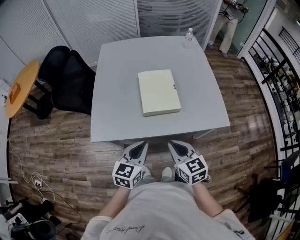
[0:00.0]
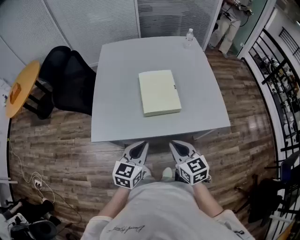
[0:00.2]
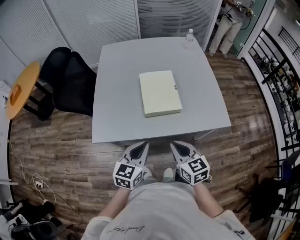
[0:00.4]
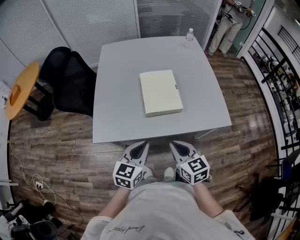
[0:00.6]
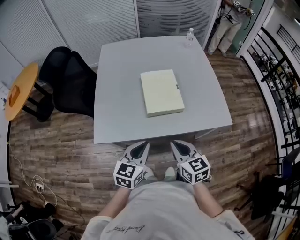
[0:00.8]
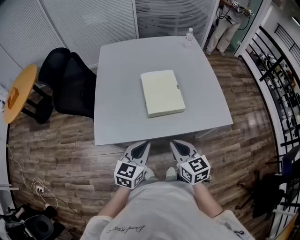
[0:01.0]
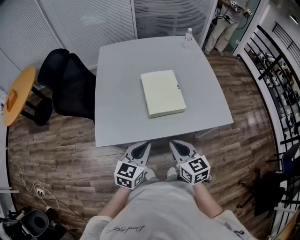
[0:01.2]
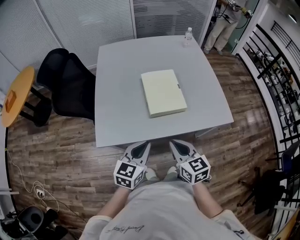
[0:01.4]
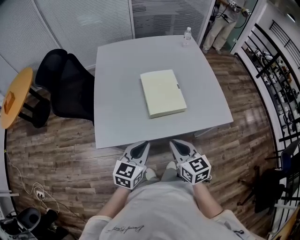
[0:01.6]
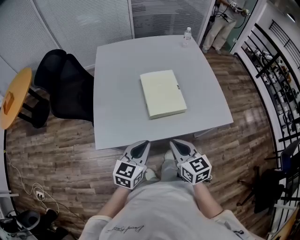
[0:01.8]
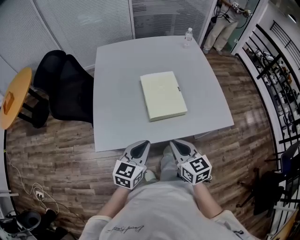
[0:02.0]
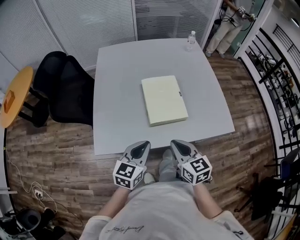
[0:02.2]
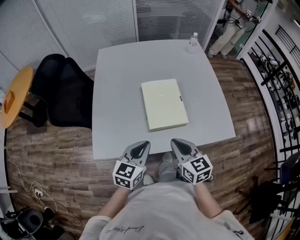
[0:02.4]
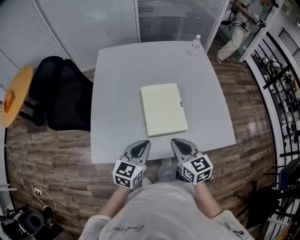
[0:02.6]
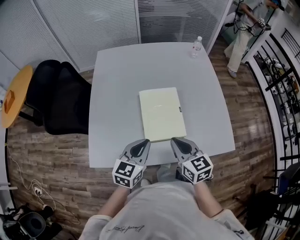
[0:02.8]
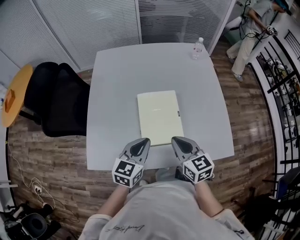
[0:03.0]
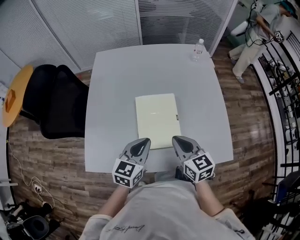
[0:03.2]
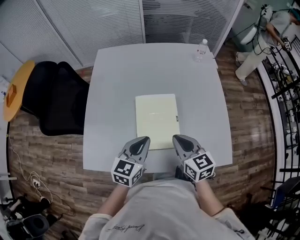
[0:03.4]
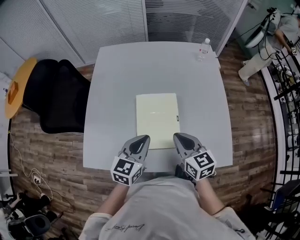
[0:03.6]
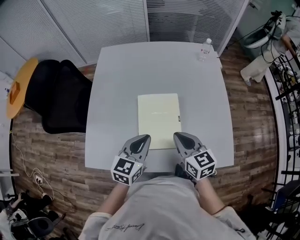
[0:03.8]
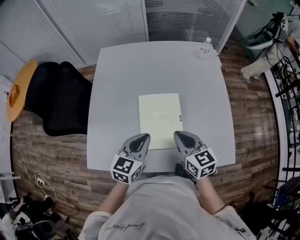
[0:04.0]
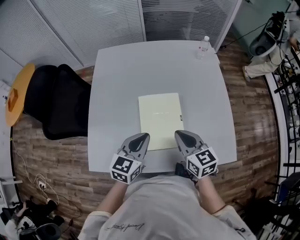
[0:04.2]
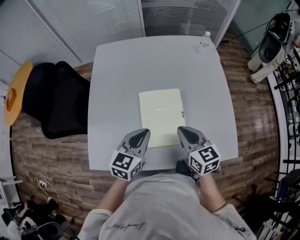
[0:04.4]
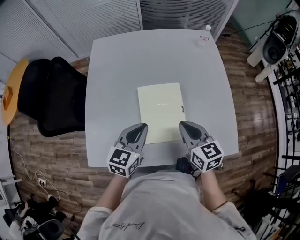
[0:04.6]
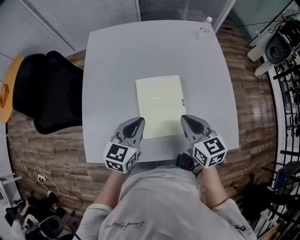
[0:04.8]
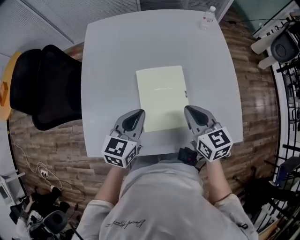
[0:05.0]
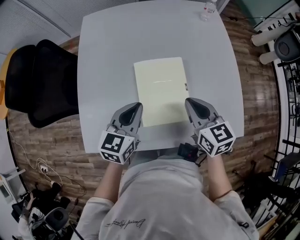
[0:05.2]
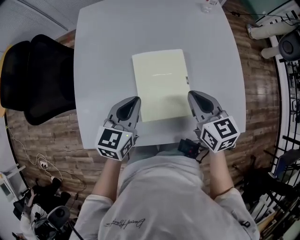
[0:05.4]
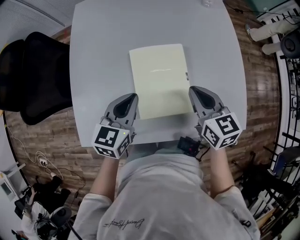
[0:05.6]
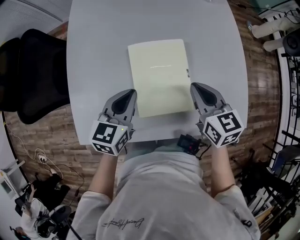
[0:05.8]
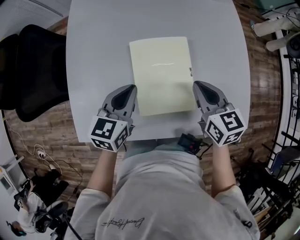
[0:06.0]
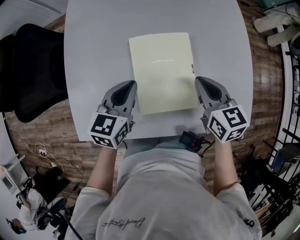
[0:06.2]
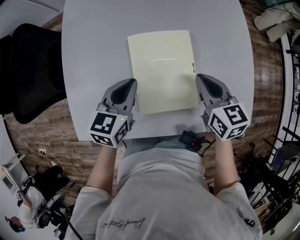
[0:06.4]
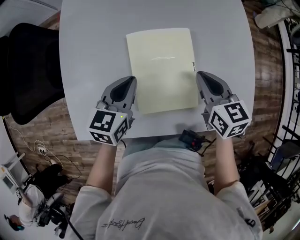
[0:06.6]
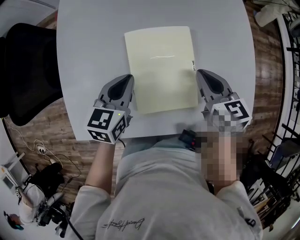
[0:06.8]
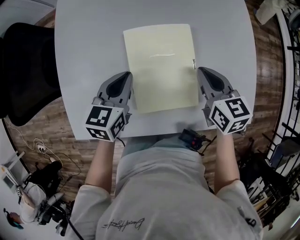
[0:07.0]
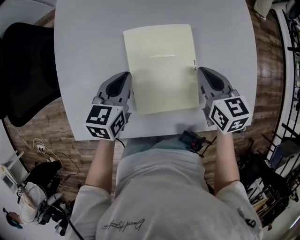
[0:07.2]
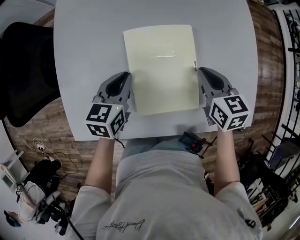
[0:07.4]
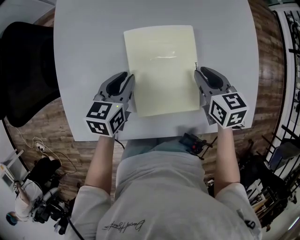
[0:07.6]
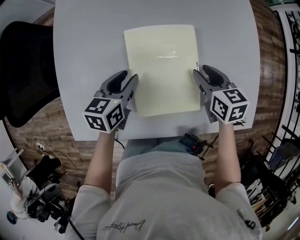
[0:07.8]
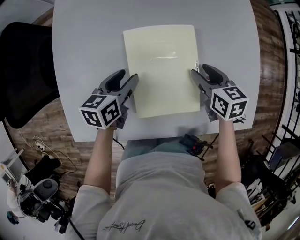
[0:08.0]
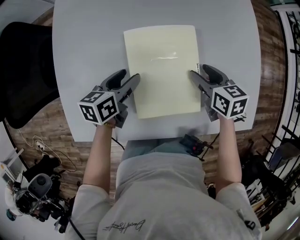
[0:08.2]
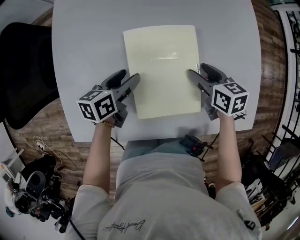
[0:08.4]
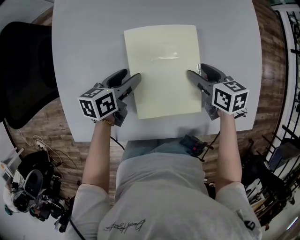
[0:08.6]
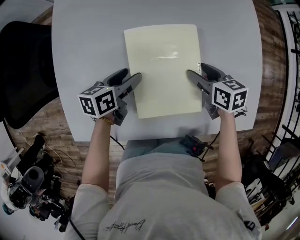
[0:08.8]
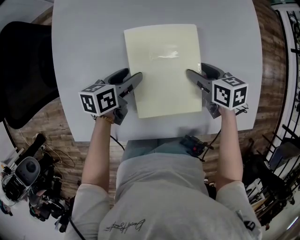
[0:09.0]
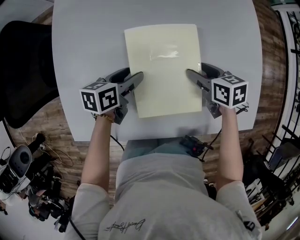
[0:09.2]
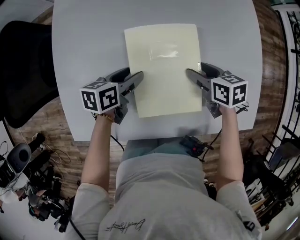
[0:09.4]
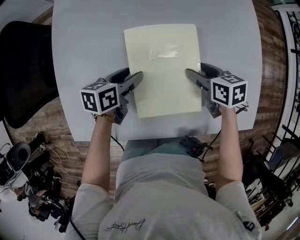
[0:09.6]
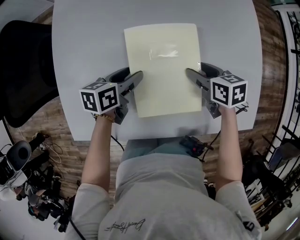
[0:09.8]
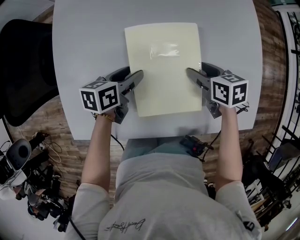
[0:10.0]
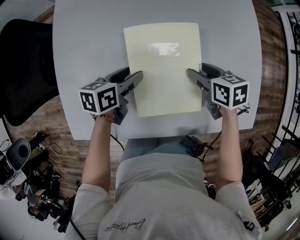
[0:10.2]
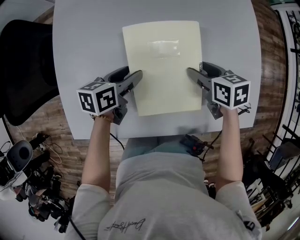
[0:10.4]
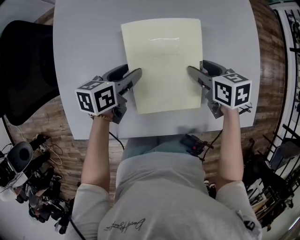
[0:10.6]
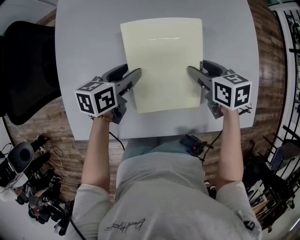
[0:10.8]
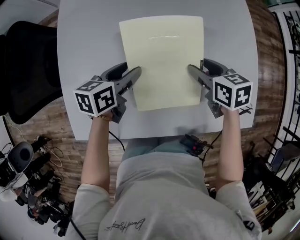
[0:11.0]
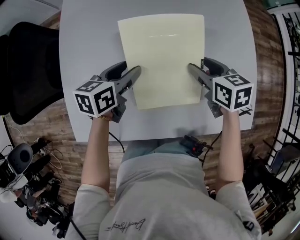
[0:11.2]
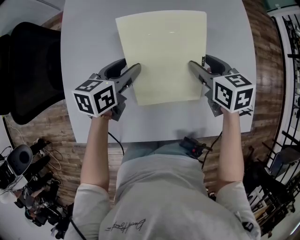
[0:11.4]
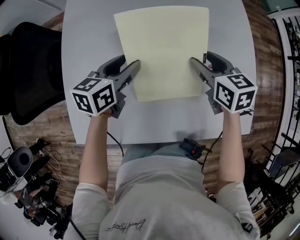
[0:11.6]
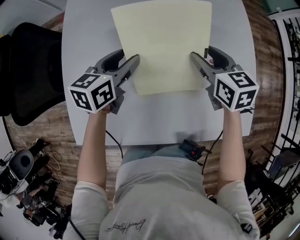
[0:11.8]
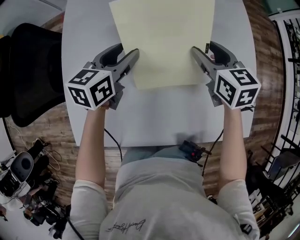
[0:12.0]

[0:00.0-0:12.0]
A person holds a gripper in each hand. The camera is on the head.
0:00.0 to 0:01.6: The grippers stay close to where they were, moving slightly.
0:01.6 to 0:03.0: Both grippers travel together forward, roughly 20 cm.
0:03.0 to 0:04.4: The right gripper heads forward, covering some 5 cm. Meanwhile the left gripper changes place by about 5 cm.
0:04.4 to 0:06.0: The left gripper travels downward by roughly 5 cm. Meanwhile the right gripper moves approximately 5 cm.
0:06.0 to 0:07.6: Both grippers travel together downward, some 10 cm.
0:07.6 to 0:09.0: Both grippers move downward, approximately 5 cm. The right gripper opens; the left gripper rotates about 20 degrees, and opens up.
0:09.0 to 0:10.4: There are only small adjustments of the grippers.
0:10.4 to 0:12.0: The two grippers go approximately 15 cm upward and forward. The left gripper changes its angle by about 30 degrees, while the right gripper swivels approximately 30 degrees.

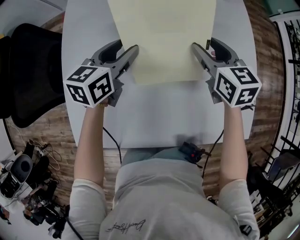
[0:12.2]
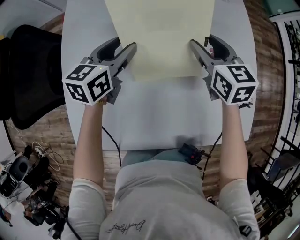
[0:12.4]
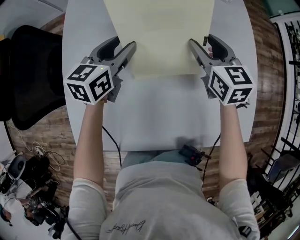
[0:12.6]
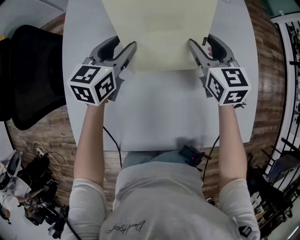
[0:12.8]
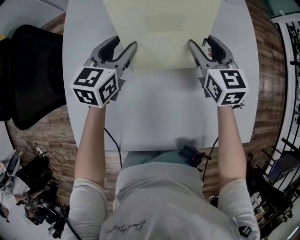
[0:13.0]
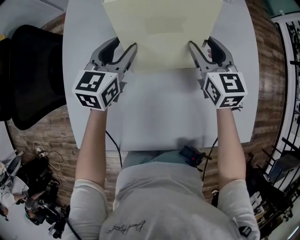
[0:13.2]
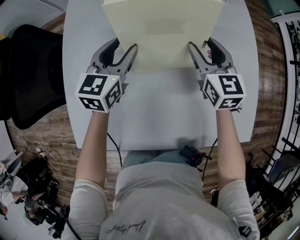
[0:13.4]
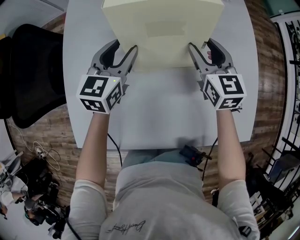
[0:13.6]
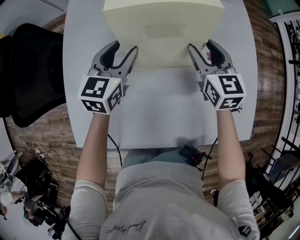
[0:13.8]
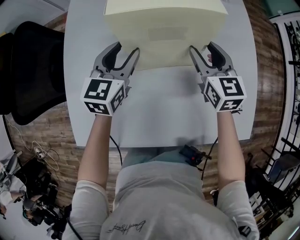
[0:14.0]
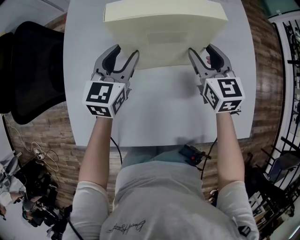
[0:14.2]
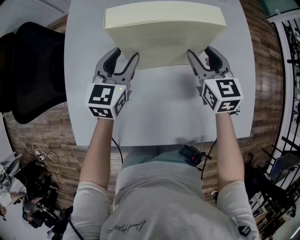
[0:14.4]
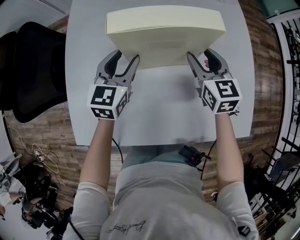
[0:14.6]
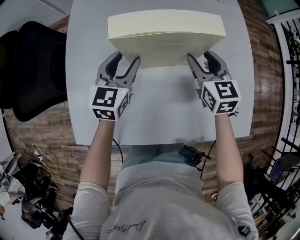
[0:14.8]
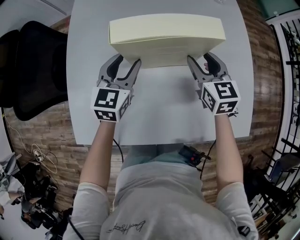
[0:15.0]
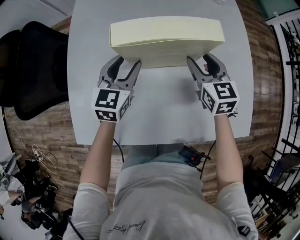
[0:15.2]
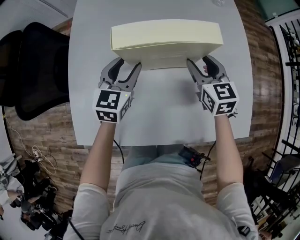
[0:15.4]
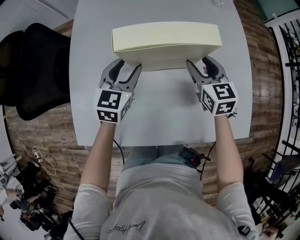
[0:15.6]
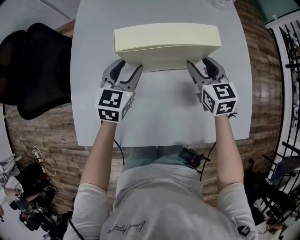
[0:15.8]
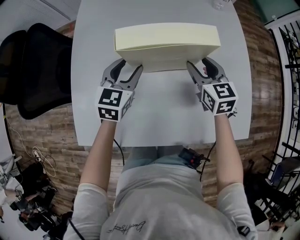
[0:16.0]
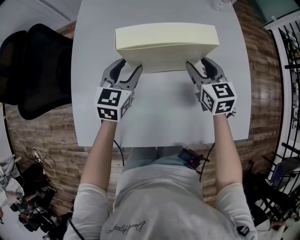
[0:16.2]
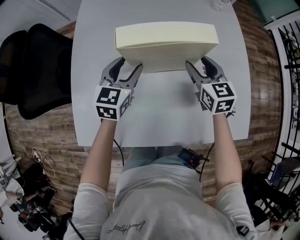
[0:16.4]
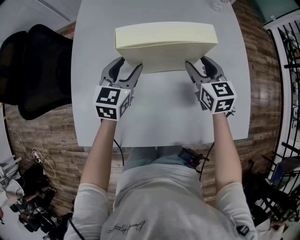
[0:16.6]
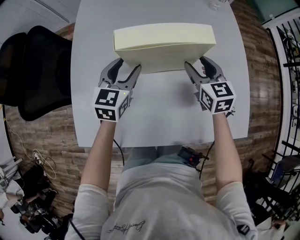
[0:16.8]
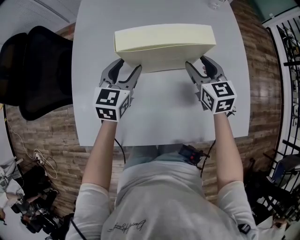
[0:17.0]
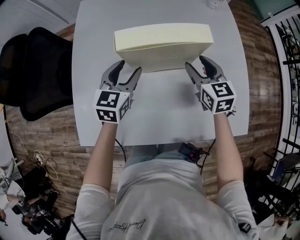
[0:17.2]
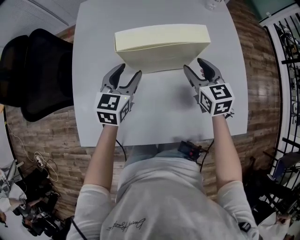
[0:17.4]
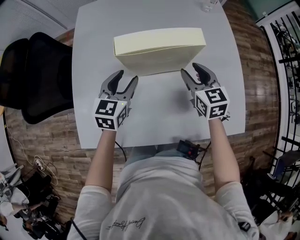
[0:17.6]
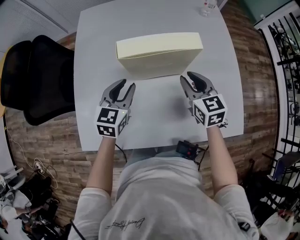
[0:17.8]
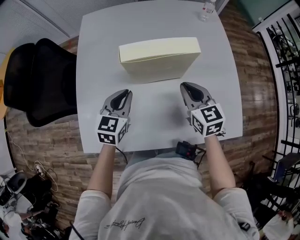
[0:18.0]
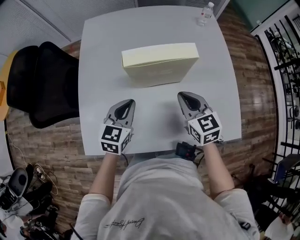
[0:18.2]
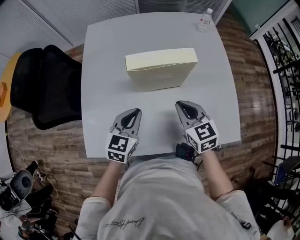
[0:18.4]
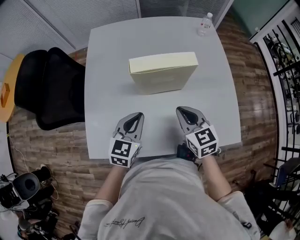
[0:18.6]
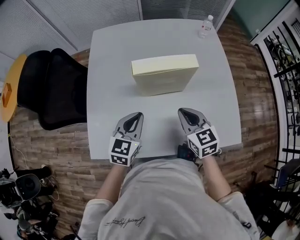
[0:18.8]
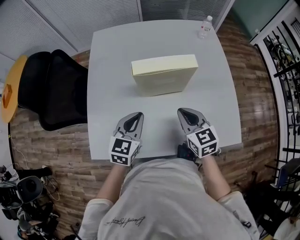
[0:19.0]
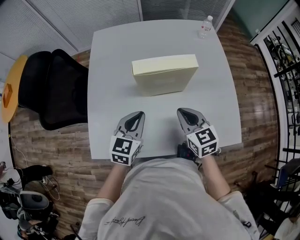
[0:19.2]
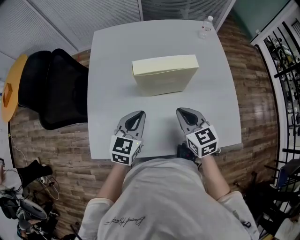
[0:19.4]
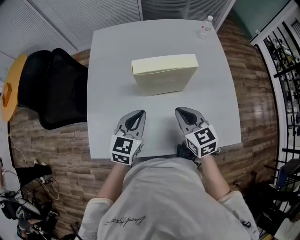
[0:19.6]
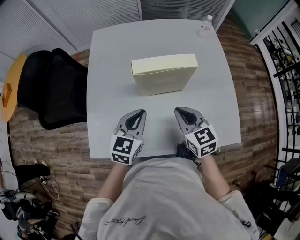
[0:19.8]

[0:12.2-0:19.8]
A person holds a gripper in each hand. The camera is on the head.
0:12.2 to 0:13.8: The grippers stay close to where they were, moving slightly.
0:13.8 to 0:15.2: The left gripper changes place by about 5 cm.
0:15.2 to 0:16.8: The two grippers keep their place.
0:16.8 to 0:18.2: The two grippers go about 10 cm backward. The right gripper closes up. The left gripper closes up.
0:18.2 to 0:19.8: The left gripper shifts by about 5 cm; the right gripper shifts by approximately 5 cm.

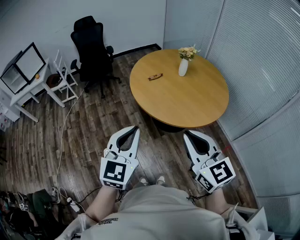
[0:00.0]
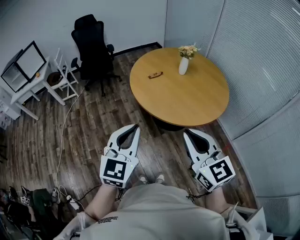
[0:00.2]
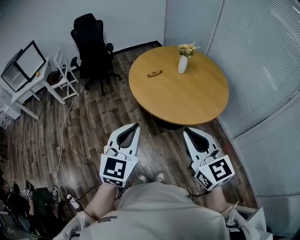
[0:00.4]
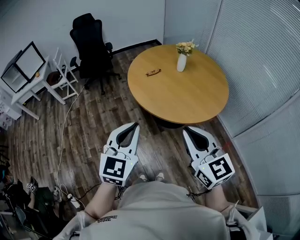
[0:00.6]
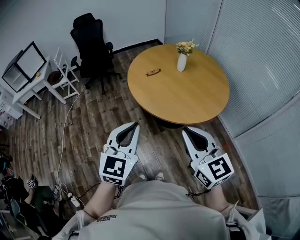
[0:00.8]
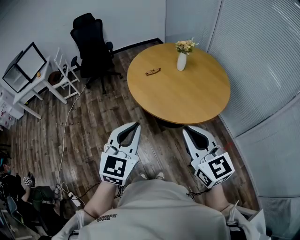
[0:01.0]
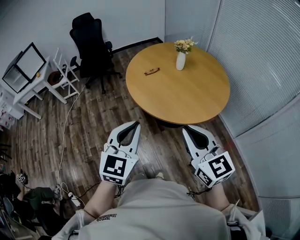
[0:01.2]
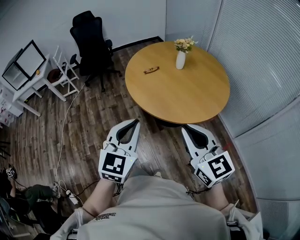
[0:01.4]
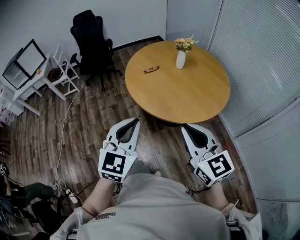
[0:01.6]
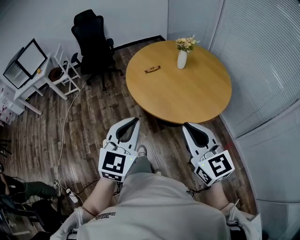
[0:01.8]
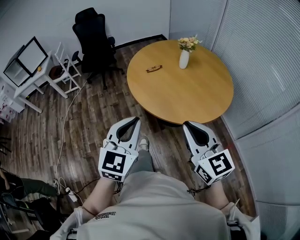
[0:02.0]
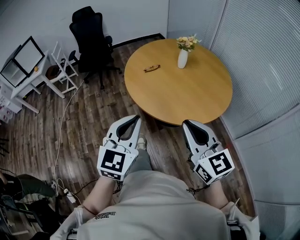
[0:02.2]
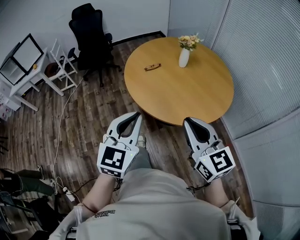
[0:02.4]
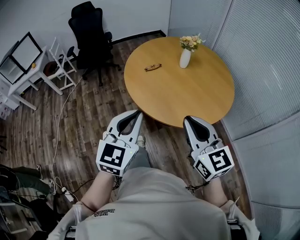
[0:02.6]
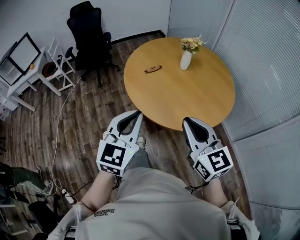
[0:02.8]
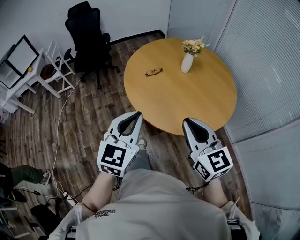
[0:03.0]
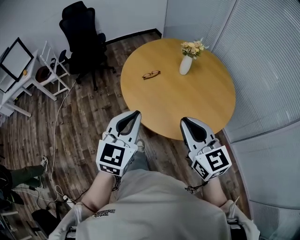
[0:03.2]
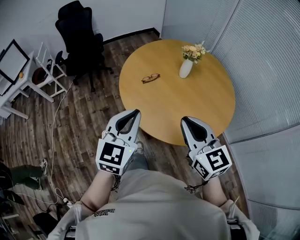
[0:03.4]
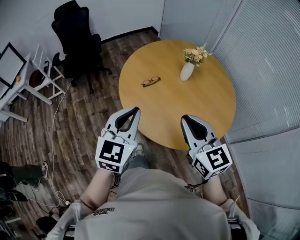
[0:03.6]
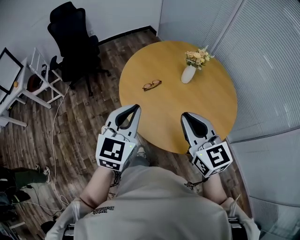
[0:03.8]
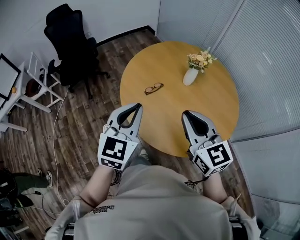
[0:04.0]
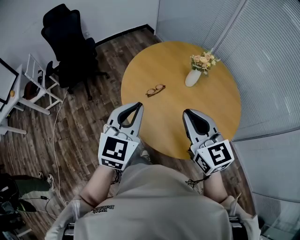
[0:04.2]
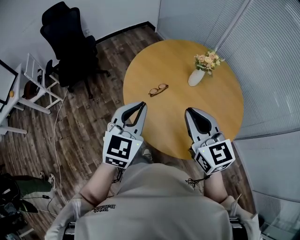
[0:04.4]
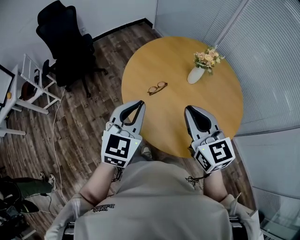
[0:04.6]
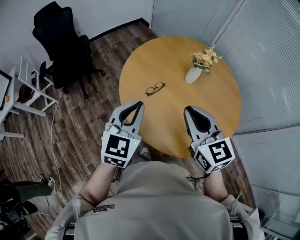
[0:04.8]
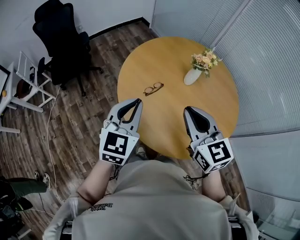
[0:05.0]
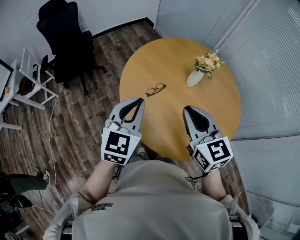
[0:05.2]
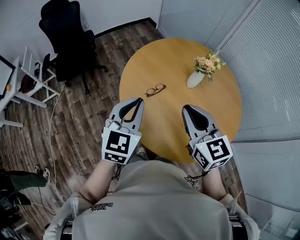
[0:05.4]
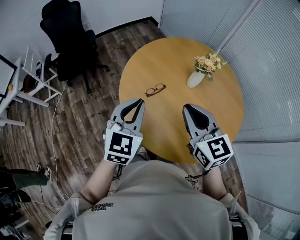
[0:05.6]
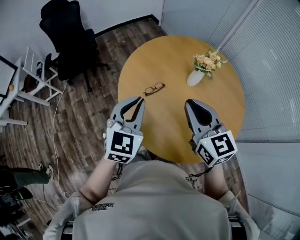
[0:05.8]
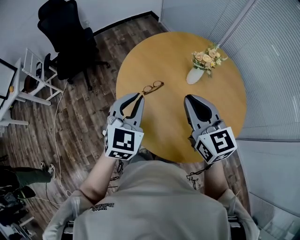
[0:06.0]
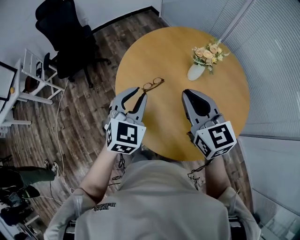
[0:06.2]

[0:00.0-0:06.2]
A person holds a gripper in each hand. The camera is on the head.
0:00.0 to 0:01.6: Both grippers travel together to the right, roughly 10 cm.
0:01.6 to 0:03.2: Both grippers move forward, about 20 cm.
0:03.2 to 0:04.6: Both grippers move forward, some 25 cm.
0:04.6 to 0:06.2: The right gripper heads forward and to the right, covering about 10 cm; the left gripper shifts approximately 10 cm forward, to the right and downward.
